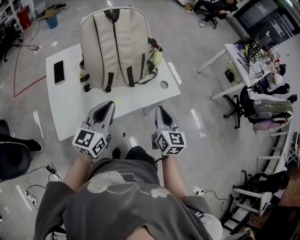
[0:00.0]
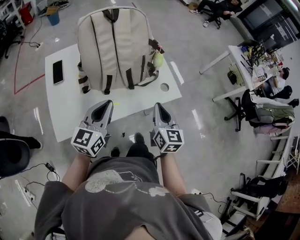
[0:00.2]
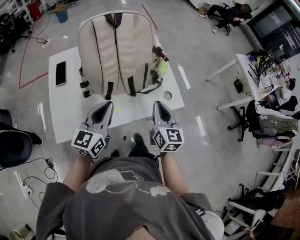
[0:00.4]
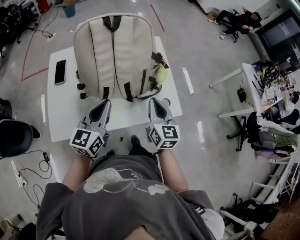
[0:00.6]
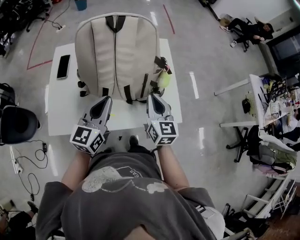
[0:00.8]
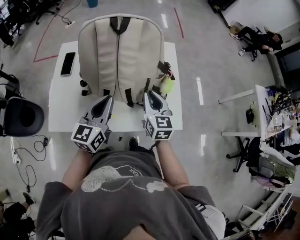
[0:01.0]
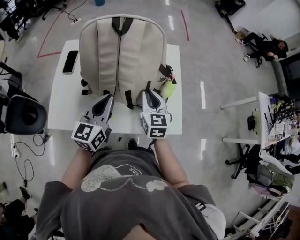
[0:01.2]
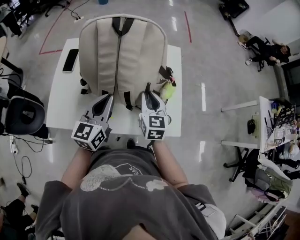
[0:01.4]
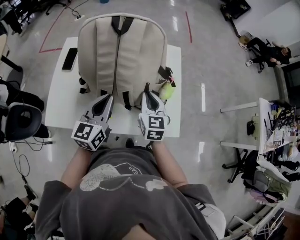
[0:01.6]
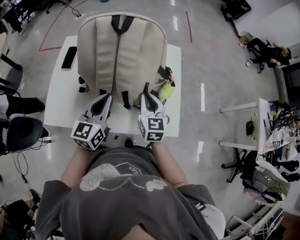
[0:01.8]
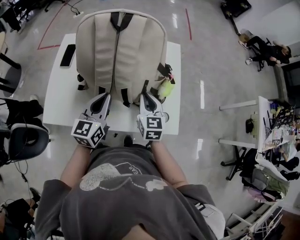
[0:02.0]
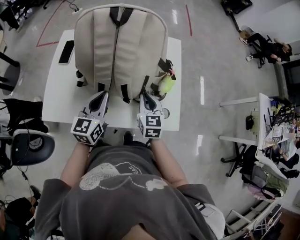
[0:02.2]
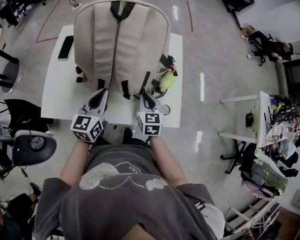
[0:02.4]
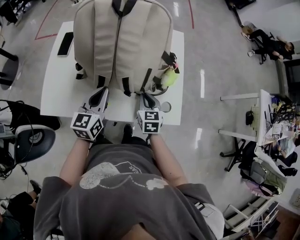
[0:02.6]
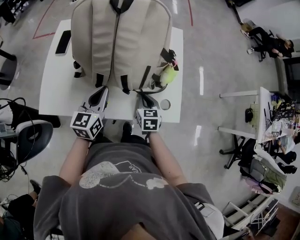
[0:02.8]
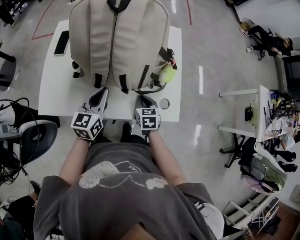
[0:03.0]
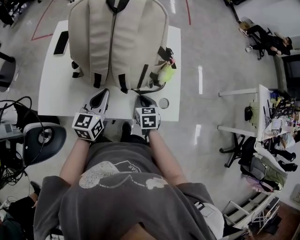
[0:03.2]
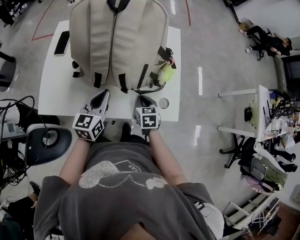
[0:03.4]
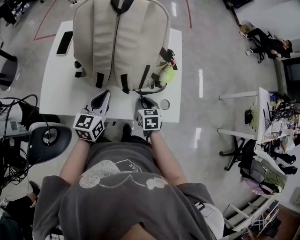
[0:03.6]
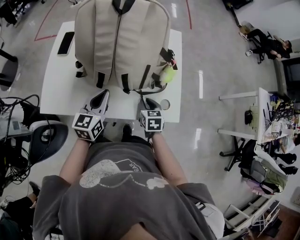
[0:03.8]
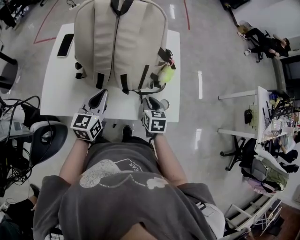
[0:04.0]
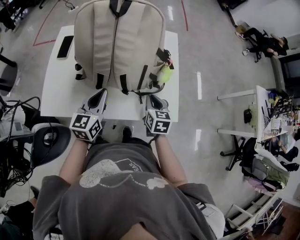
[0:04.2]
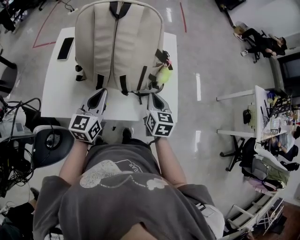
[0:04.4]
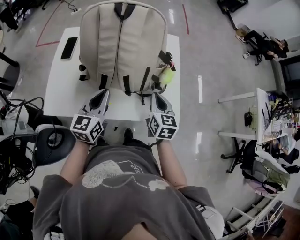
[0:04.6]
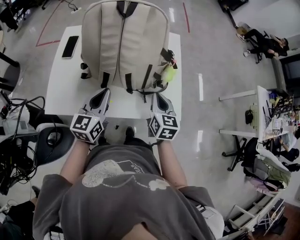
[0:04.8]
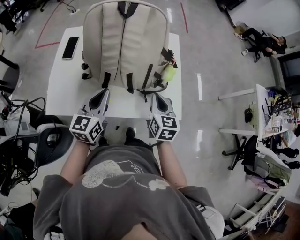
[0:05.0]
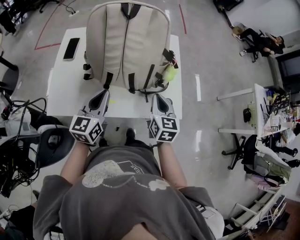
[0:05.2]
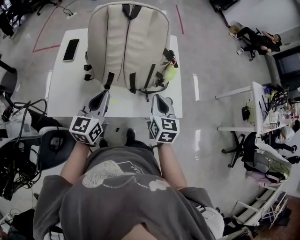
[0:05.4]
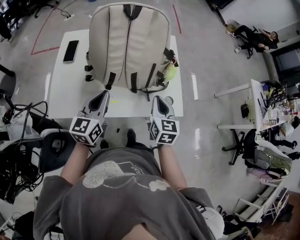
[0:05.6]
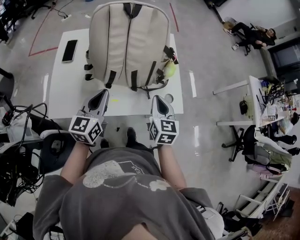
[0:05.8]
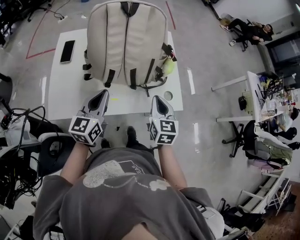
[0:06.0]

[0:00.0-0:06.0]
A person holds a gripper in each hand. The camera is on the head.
0:00.0 to 0:01.6: The right gripper changes place by some 25 cm, and turns by about 30 degrees. The left gripper changes place by approximately 15 cm, and swivels about 30 degrees.
0:01.6 to 0:03.0: The right gripper heads downward and backward, covering roughly 15 cm, and turns by roughly 30 degrees; the left gripper heads downward, covering roughly 10 cm.
0:03.0 to 0:04.4: The right gripper heads upward, covering some 10 cm.
0:04.4 to 0:06.0: The left gripper ends up roughly 5 cm from where it was; the right gripper travels backward by about 5 cm.

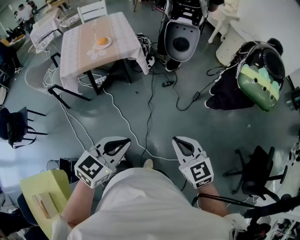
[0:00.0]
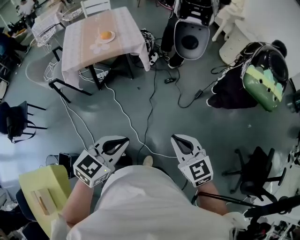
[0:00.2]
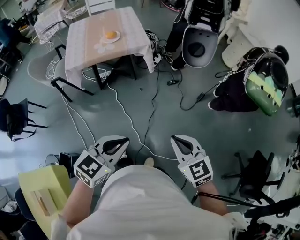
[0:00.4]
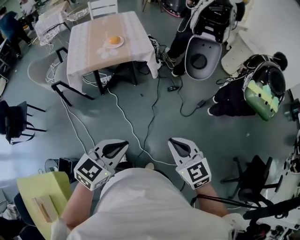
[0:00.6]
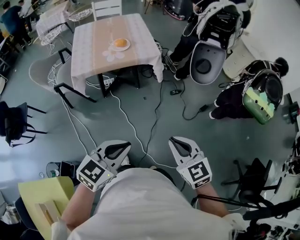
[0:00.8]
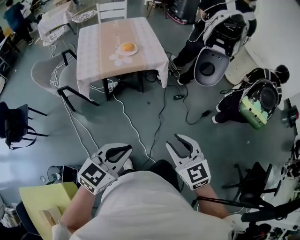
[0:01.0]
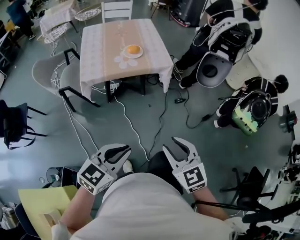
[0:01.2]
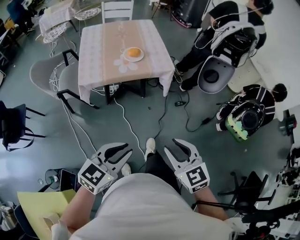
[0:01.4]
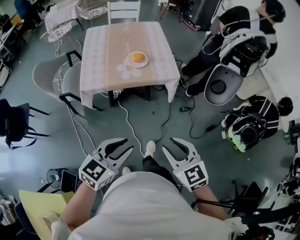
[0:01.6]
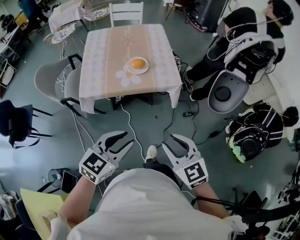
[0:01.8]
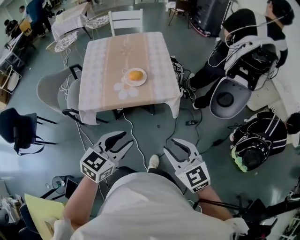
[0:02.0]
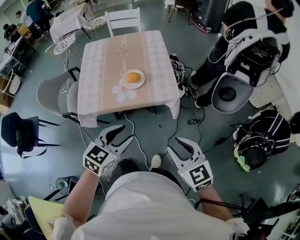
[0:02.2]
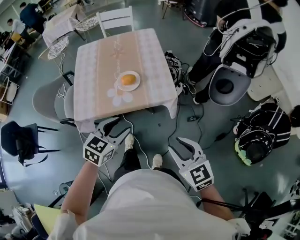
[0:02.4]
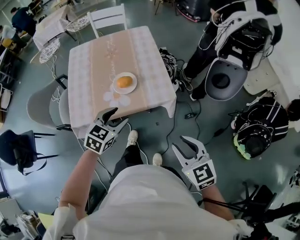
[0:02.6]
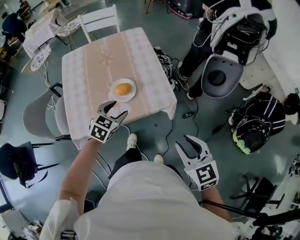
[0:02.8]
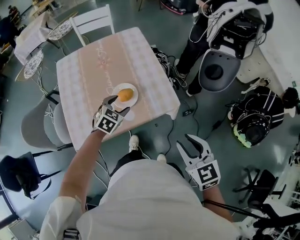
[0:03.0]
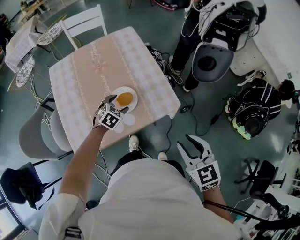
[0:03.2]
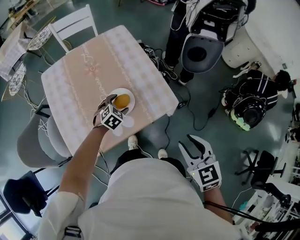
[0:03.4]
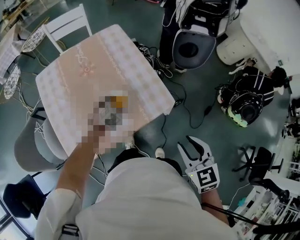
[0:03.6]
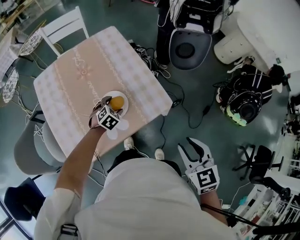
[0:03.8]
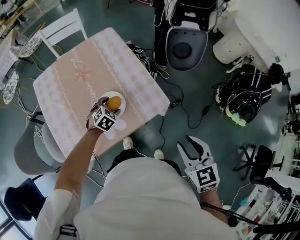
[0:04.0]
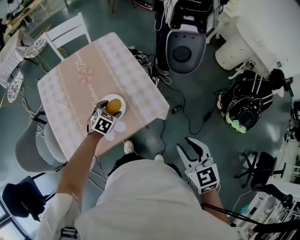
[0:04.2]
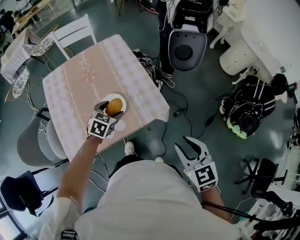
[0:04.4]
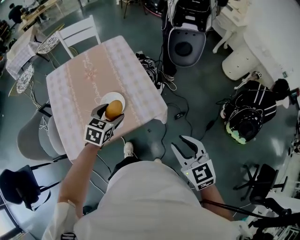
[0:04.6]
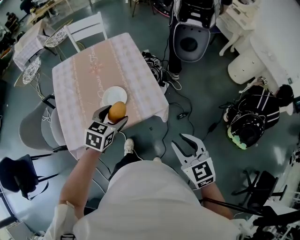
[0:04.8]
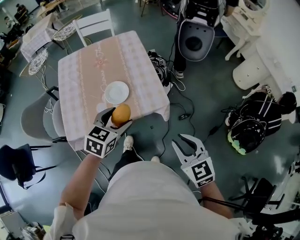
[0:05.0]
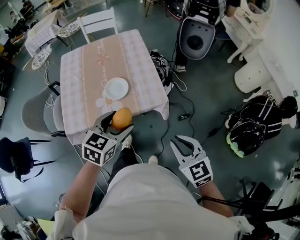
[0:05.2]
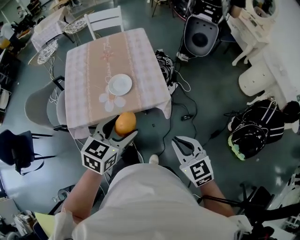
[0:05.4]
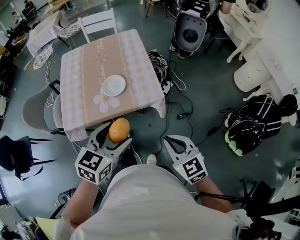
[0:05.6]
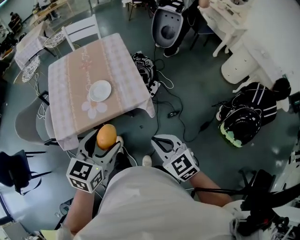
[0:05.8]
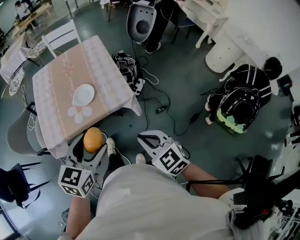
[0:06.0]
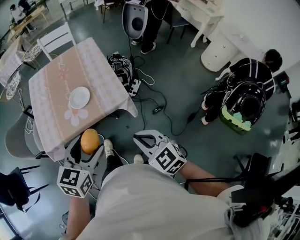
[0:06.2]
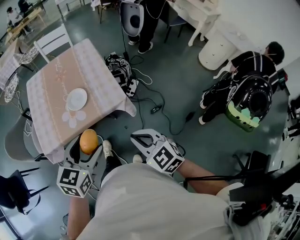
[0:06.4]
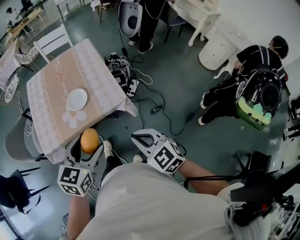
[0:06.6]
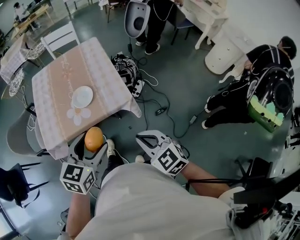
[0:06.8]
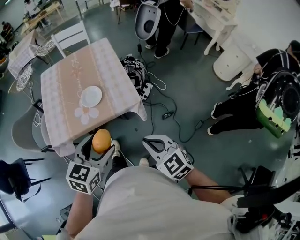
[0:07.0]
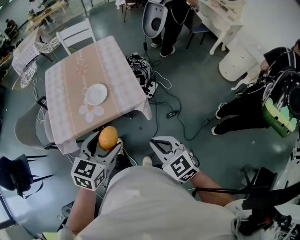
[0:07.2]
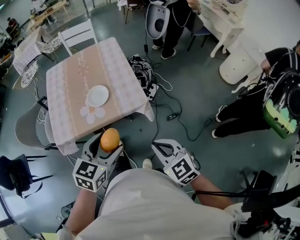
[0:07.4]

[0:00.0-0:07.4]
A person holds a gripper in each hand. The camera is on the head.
0:00.0 to 0:01.4: Both grippers travel together to the left and forward, some 25 cm. The right gripper opens up.
0:01.4 to 0:03.0: The left gripper goes approximately 50 cm forward, rotates some 30 degrees, and opens up. The right gripper moves forward, some 30 cm.
0:03.0 to 0:04.4: The left gripper reaches some 10 cm downward, then returns.
0:04.4 to 0:06.0: The right gripper travels backward by some 10 cm, rotates some 30 degrees, and closes its fingers; the left gripper travels backward and upward by roughly 35 cm, and turns by about 20 degrees.
0:06.0 to 0:07.4: The grippers make only small movements.

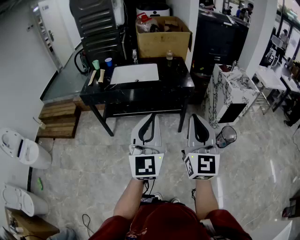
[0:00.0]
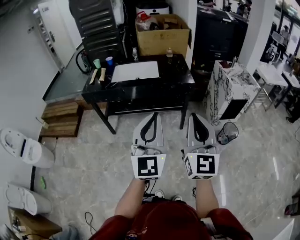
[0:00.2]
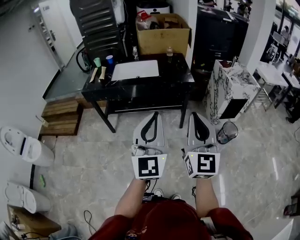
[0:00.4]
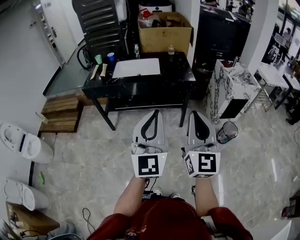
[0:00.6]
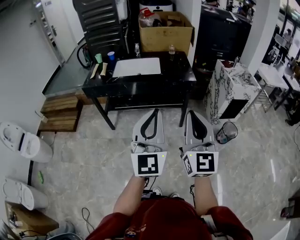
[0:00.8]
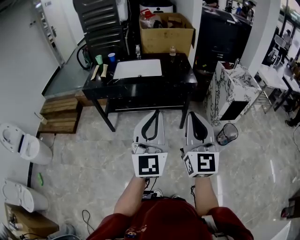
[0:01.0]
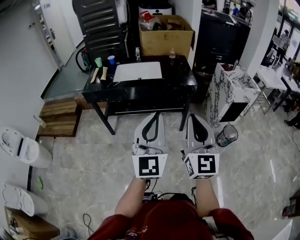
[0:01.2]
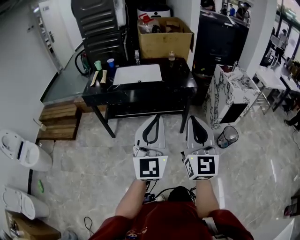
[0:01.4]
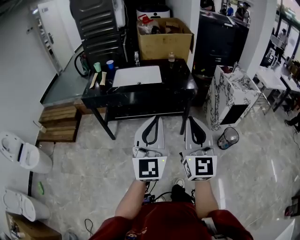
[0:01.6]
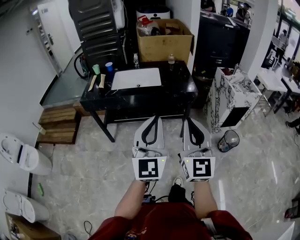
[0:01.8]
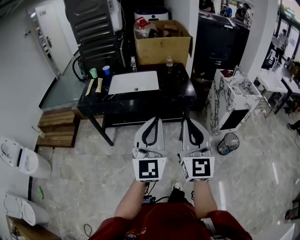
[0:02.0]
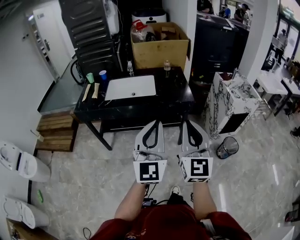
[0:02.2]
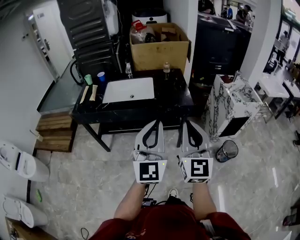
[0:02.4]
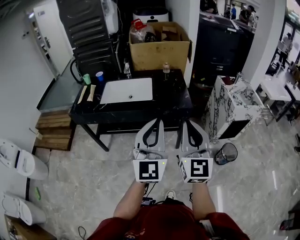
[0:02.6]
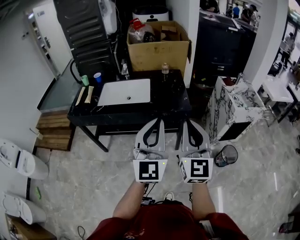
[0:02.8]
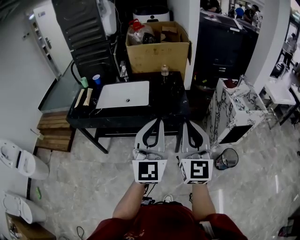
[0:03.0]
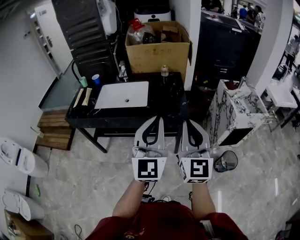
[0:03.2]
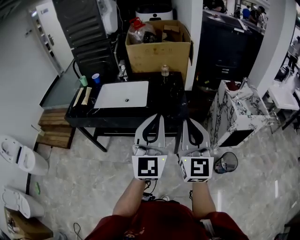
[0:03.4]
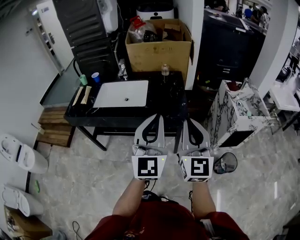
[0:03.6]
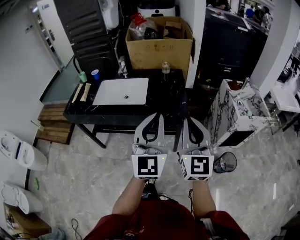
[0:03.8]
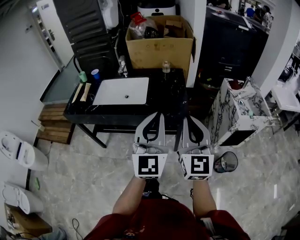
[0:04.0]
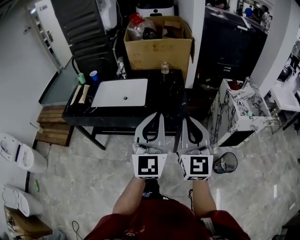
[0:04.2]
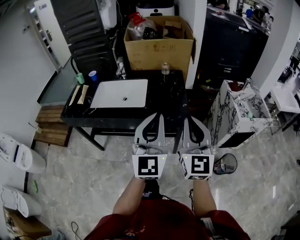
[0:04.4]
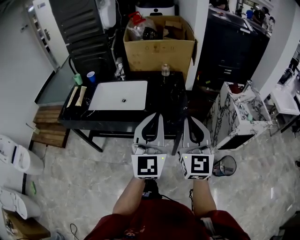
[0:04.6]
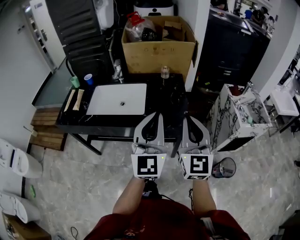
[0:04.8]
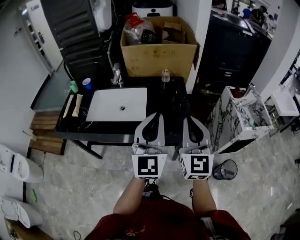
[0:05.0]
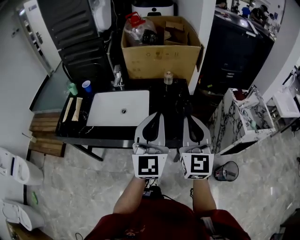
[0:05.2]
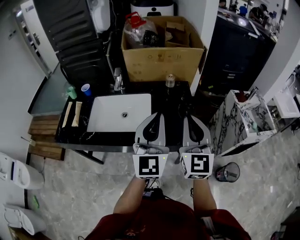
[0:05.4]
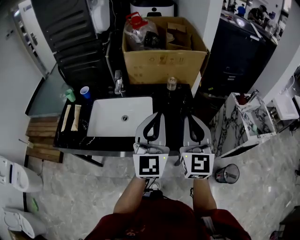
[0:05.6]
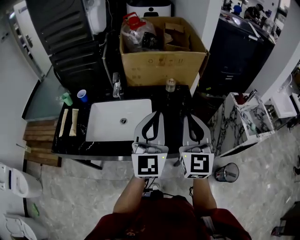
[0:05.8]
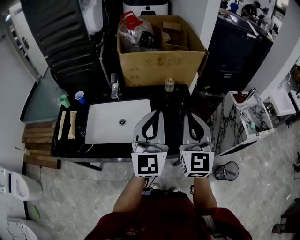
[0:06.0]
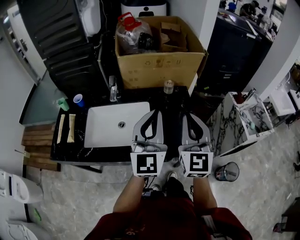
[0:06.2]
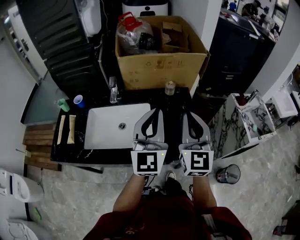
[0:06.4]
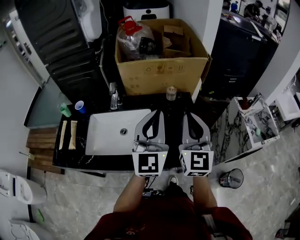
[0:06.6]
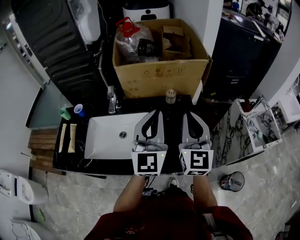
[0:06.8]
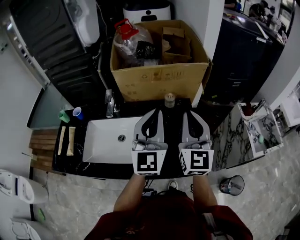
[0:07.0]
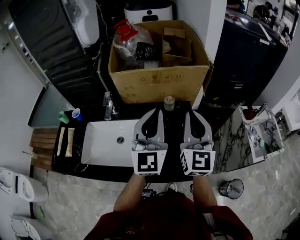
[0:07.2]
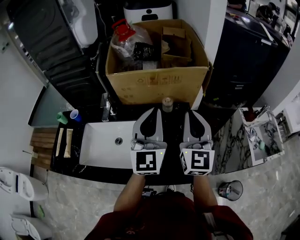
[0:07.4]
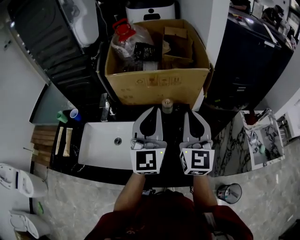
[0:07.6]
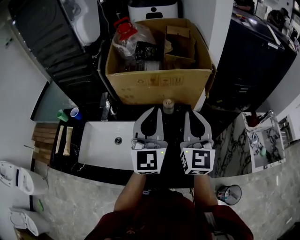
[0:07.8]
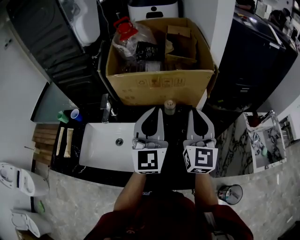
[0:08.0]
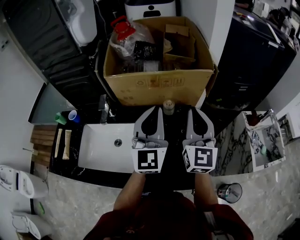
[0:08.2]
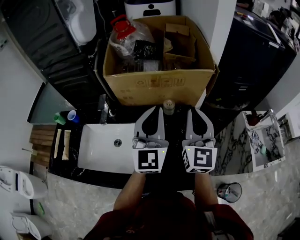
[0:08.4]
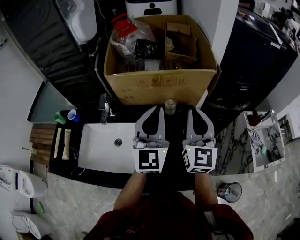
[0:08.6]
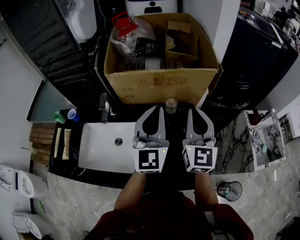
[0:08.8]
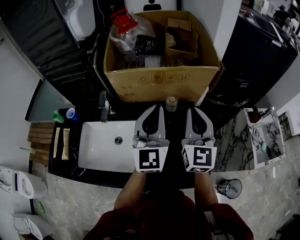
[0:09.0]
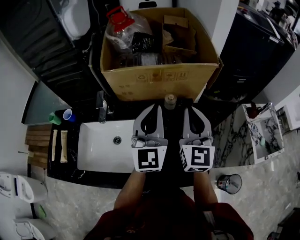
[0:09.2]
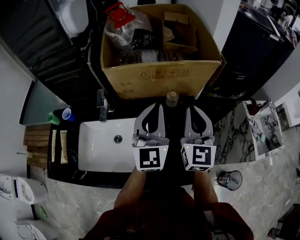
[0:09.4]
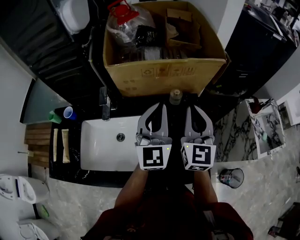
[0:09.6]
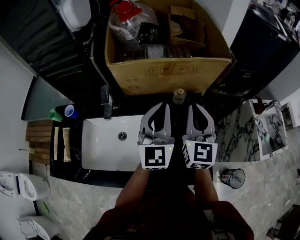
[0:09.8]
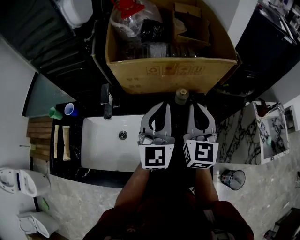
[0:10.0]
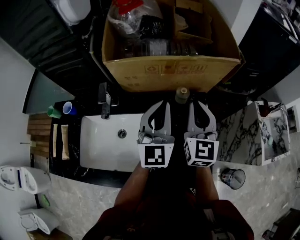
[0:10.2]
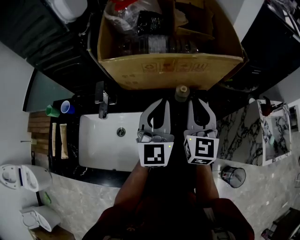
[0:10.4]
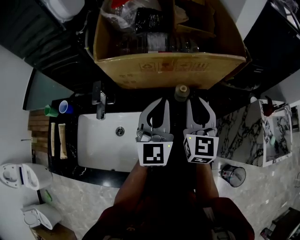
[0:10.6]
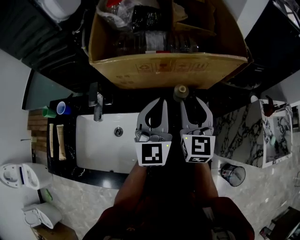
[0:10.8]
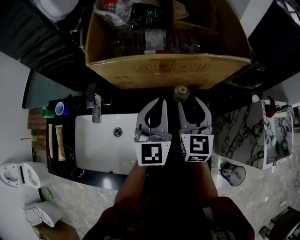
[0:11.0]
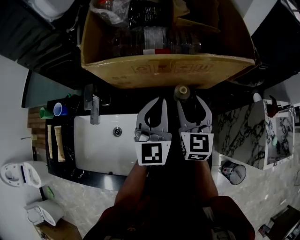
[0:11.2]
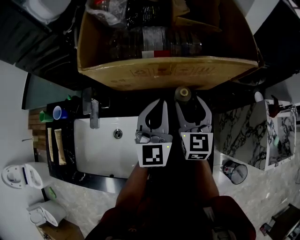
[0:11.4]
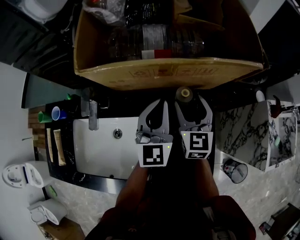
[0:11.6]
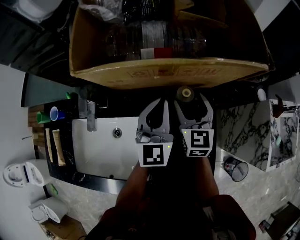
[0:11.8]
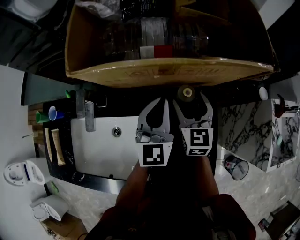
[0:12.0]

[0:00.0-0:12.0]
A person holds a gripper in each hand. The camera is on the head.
0:00.0 to 0:01.6: The grippers make only small movements.
0:01.6 to 0:03.0: The grippers both shift forward and to the right by some 30 cm.
0:03.0 to 0:04.4: The two grippers go about 10 cm forward.
0:04.4 to 0:06.0: Both grippers travel together forward and to the left, roughly 30 cm.
0:06.0 to 0:07.6: Both grippers travel together forward, some 20 cm.
0:07.6 to 0:09.0: The left gripper shifts by roughly 5 cm. Meanwhile the right gripper moves about 5 cm.
0:09.0 to 0:10.4: Both grippers travel together downward and forward, approximately 10 cm.
0:10.4 to 0:12.0: The grippers both shift downward and forward by roughly 15 cm. The right gripper opens its fingers.
